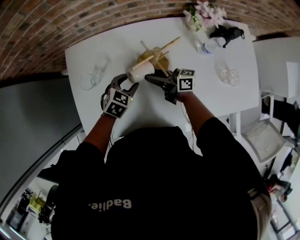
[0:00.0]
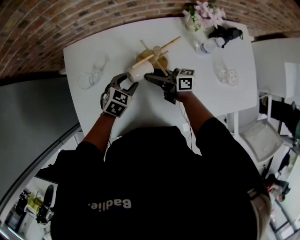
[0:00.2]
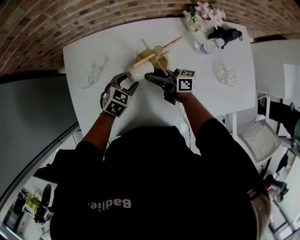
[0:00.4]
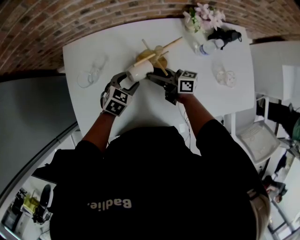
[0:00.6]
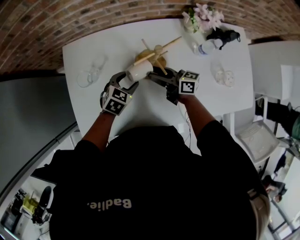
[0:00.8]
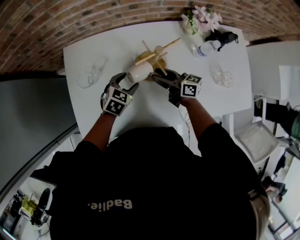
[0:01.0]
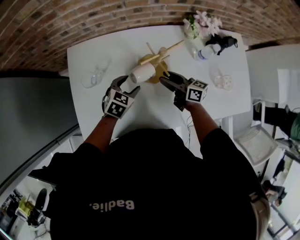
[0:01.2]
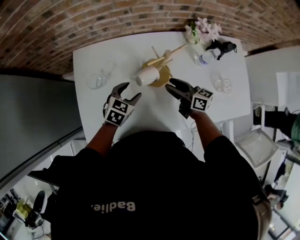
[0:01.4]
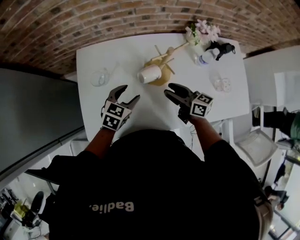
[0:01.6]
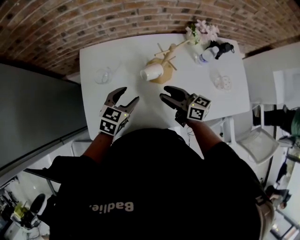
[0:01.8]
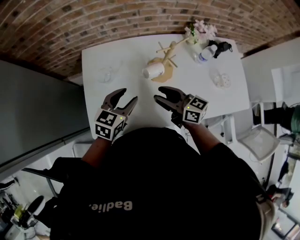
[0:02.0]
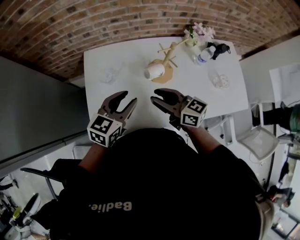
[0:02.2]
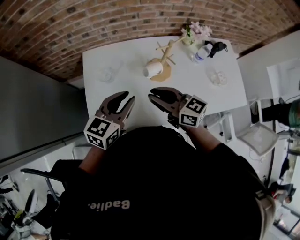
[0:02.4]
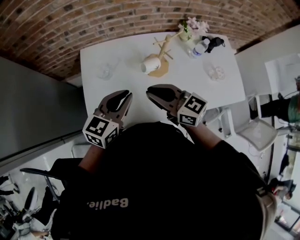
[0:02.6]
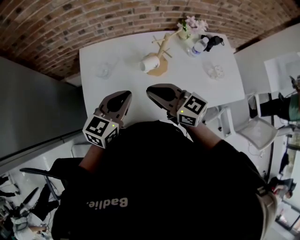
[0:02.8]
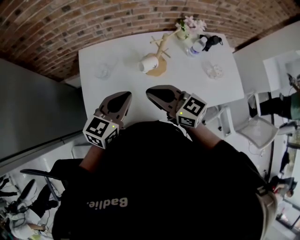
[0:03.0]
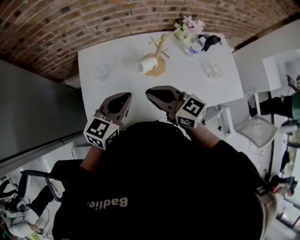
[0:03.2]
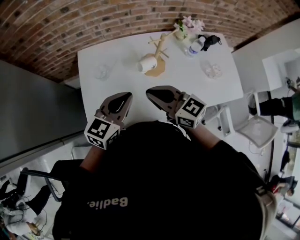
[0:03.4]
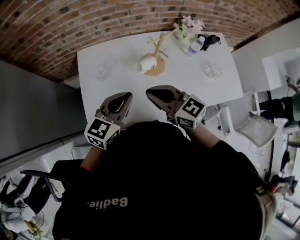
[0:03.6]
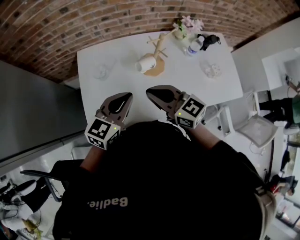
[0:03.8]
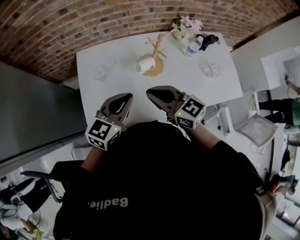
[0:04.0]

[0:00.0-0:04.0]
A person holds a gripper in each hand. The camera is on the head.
0:00.0 to 0:01.4: The left gripper changes place by about 5 cm. Meanwhile the right gripper heads to the right, covering roughly 5 cm, and rotates about 20 degrees.
0:01.4 to 0:02.6: The right gripper heads upward, to the left and backward, covering some 25 cm, turns by about 30 degrees, and closes; the left gripper heads upward and backward, covering roughly 25 cm, rotates approximately 30 degrees, and closes its fingers.
0:02.6 to 0:04.0: The grippers make only small movements.

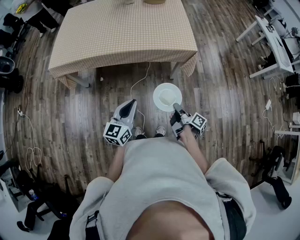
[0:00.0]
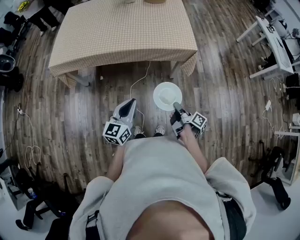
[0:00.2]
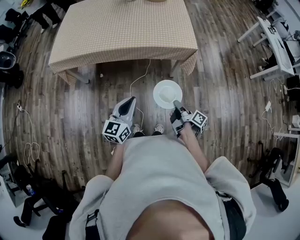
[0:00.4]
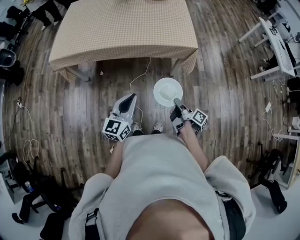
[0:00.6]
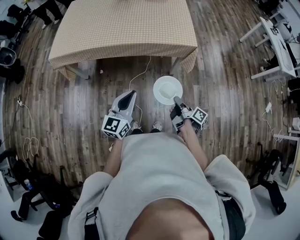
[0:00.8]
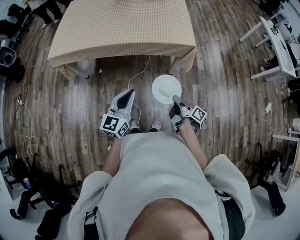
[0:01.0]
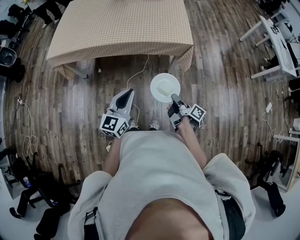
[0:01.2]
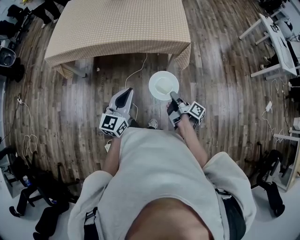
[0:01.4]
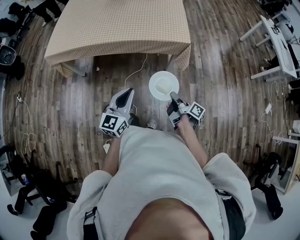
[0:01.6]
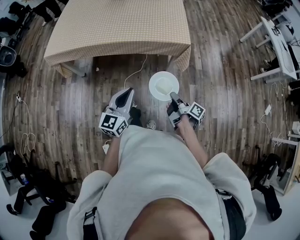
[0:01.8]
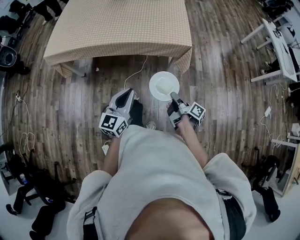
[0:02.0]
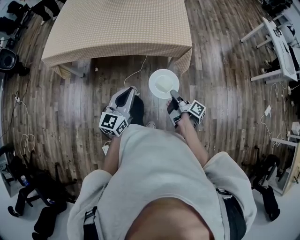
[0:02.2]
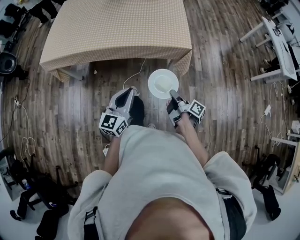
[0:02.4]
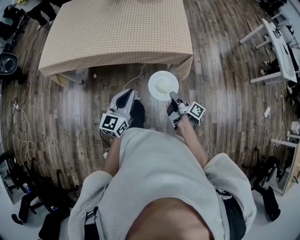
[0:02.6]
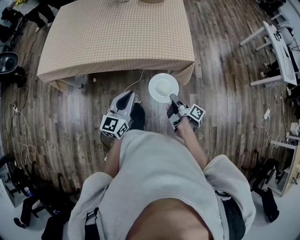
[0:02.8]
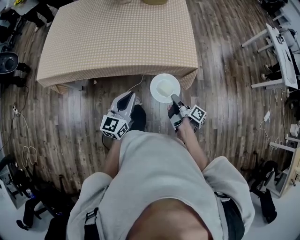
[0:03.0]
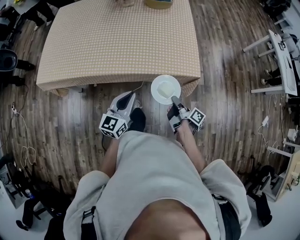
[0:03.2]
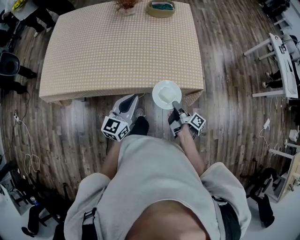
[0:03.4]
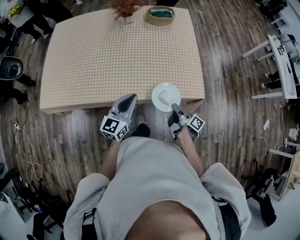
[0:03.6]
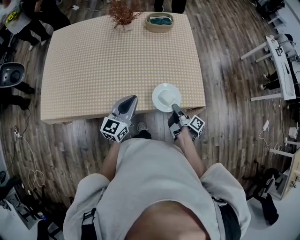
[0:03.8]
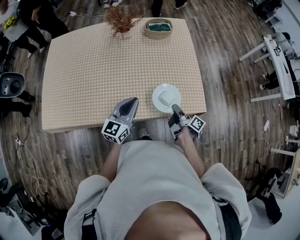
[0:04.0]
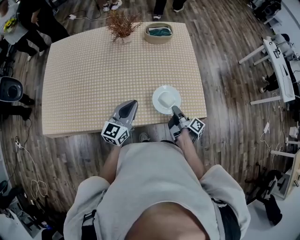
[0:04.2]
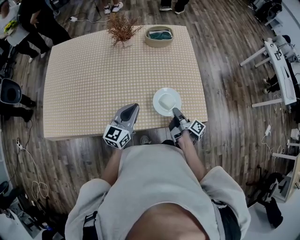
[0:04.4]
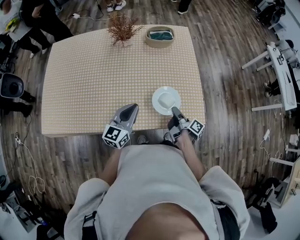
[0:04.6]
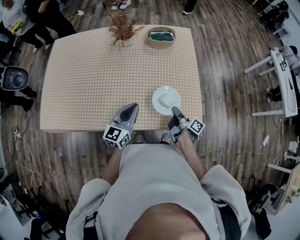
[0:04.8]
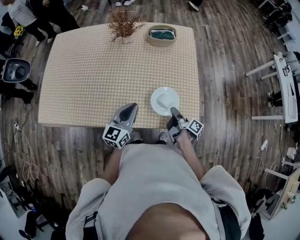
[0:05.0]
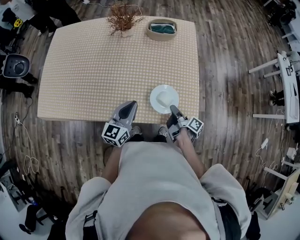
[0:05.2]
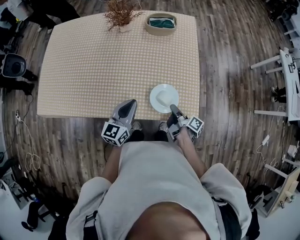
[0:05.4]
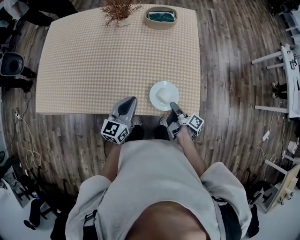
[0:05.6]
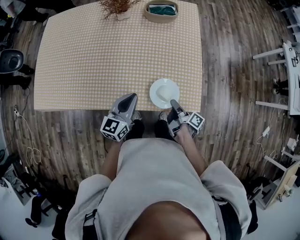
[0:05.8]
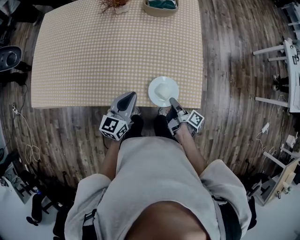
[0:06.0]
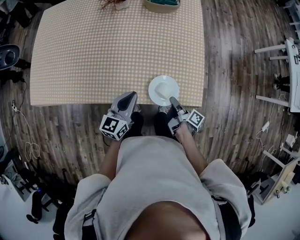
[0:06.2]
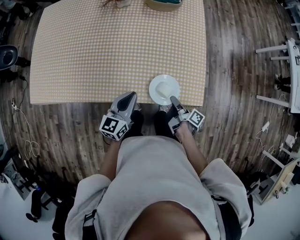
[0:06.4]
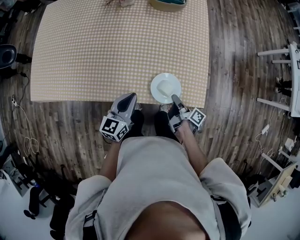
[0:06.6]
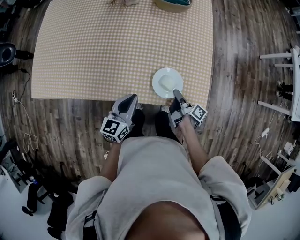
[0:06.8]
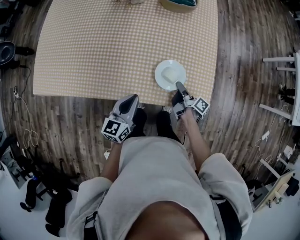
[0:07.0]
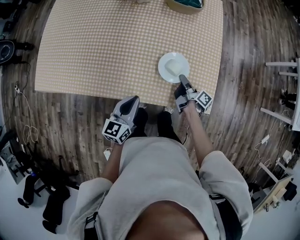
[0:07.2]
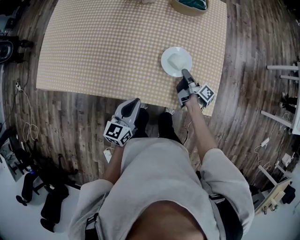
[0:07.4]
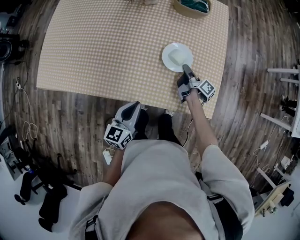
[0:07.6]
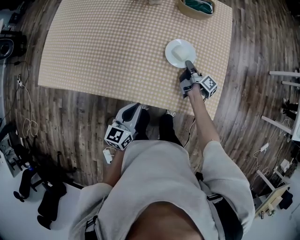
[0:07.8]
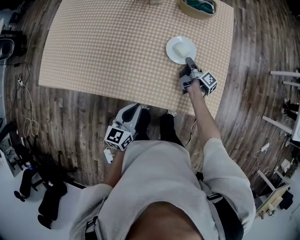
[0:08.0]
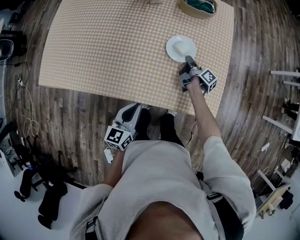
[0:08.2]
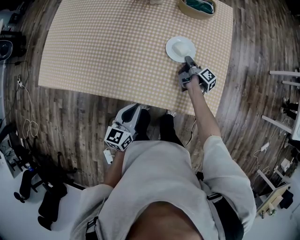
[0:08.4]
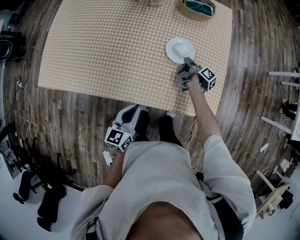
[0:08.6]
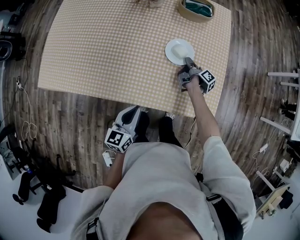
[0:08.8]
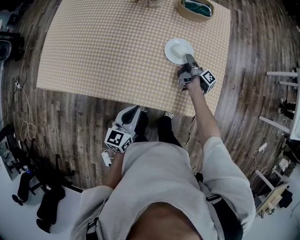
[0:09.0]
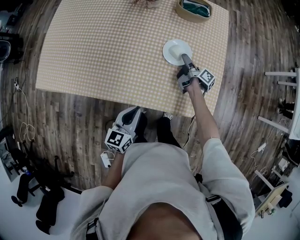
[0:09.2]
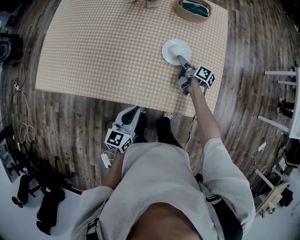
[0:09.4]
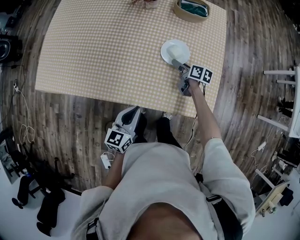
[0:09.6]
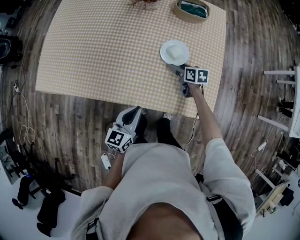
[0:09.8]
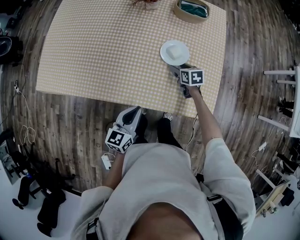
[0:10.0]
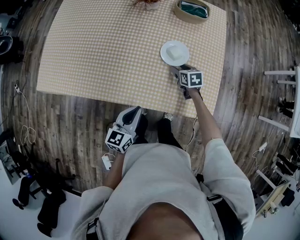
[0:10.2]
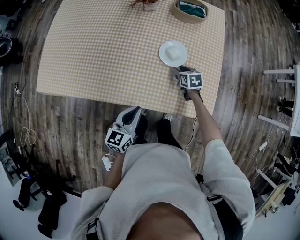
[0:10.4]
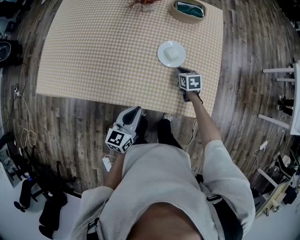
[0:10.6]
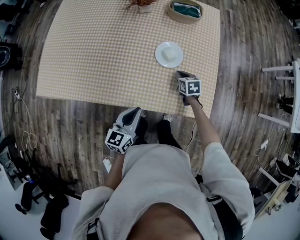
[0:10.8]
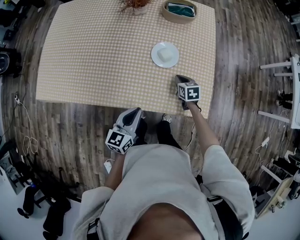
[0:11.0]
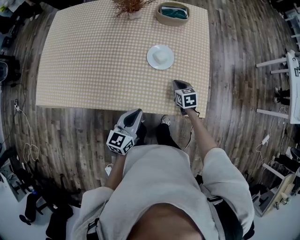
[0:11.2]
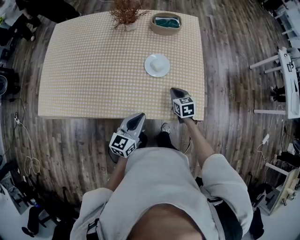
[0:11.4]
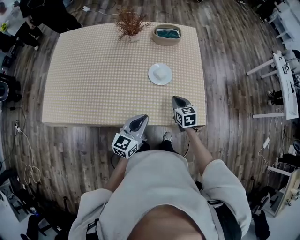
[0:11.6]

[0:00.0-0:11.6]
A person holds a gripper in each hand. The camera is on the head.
0:00.0 to 0:01.4: The left gripper ends up roughly 10 cm from where it was.
0:01.4 to 0:02.8: The left gripper shifts by some 15 cm.
0:02.8 to 0:04.4: The left gripper ends up approximately 35 cm from where it was.
0:04.4 to 0:05.8: The left gripper moves approximately 10 cm.
0:05.8 to 0:07.2: The left gripper shifts by approximately 5 cm.
0:10.2 to 0:11.6: The left gripper shifts some 5 cm upward.

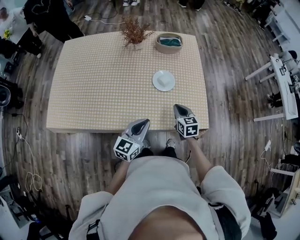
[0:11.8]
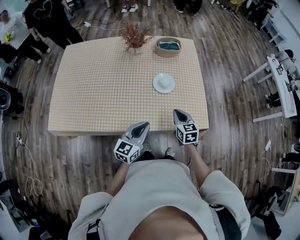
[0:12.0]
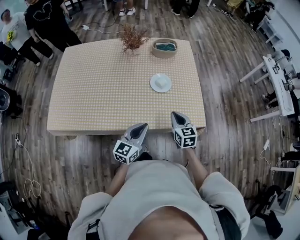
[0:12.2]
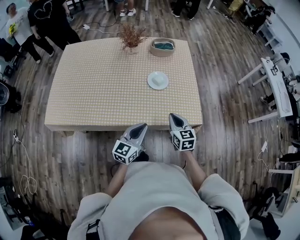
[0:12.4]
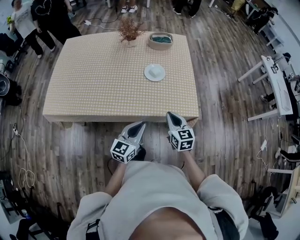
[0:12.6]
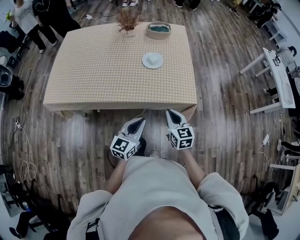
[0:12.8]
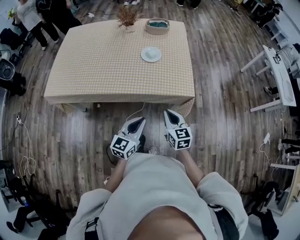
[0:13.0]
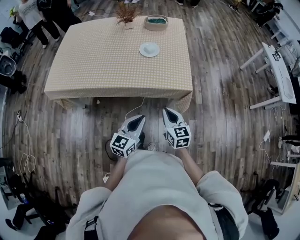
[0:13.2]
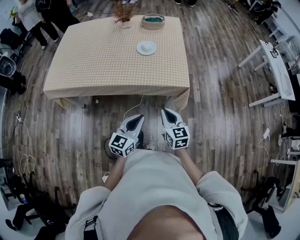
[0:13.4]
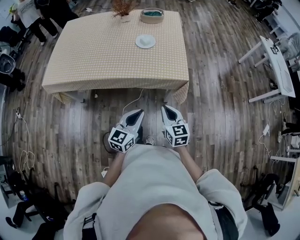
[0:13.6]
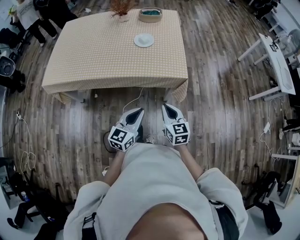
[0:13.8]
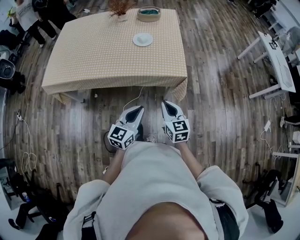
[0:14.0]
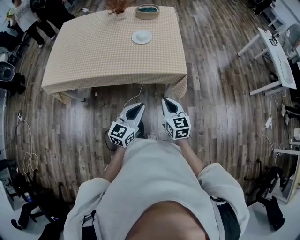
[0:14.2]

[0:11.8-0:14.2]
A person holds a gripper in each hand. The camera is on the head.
0:11.8 to 0:13.0: The left gripper moves some 25 cm.
0:13.0 to 0:14.2: The left gripper ends up roughly 10 cm from where it was.

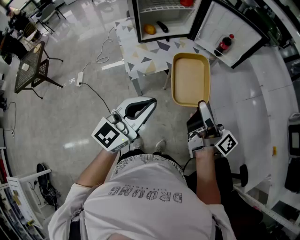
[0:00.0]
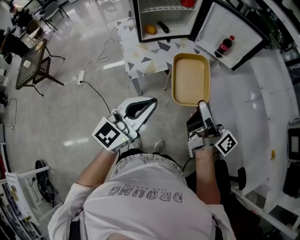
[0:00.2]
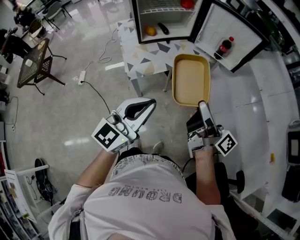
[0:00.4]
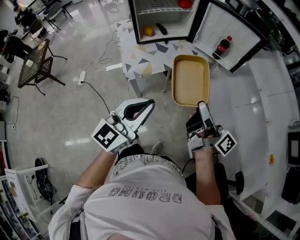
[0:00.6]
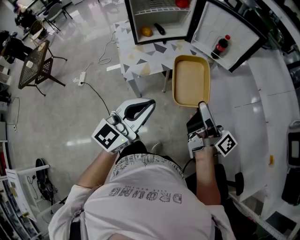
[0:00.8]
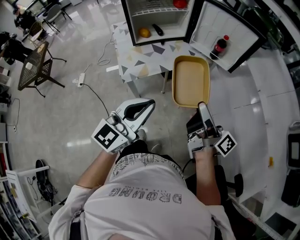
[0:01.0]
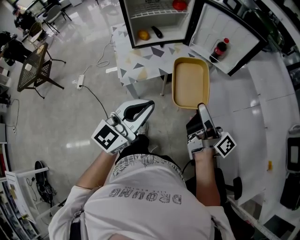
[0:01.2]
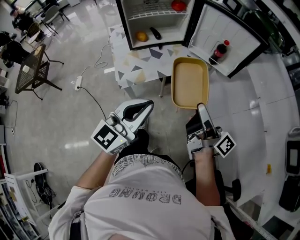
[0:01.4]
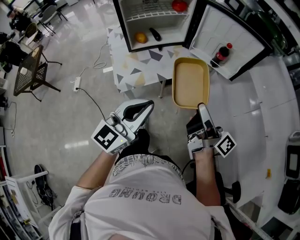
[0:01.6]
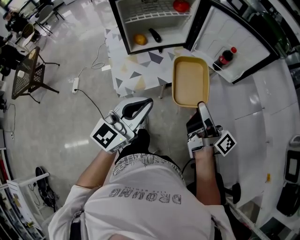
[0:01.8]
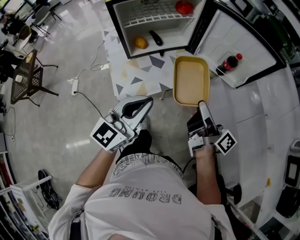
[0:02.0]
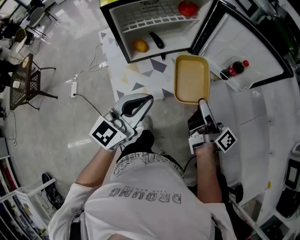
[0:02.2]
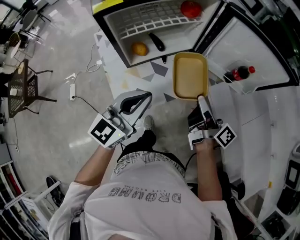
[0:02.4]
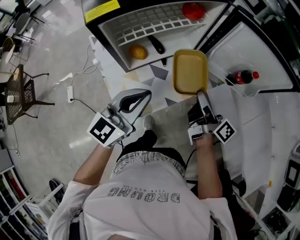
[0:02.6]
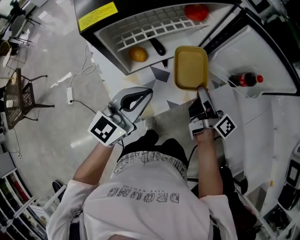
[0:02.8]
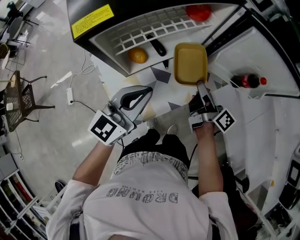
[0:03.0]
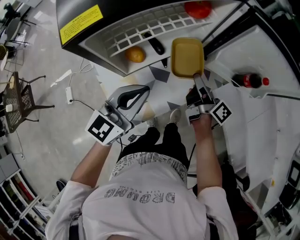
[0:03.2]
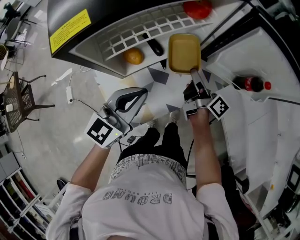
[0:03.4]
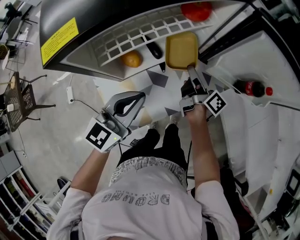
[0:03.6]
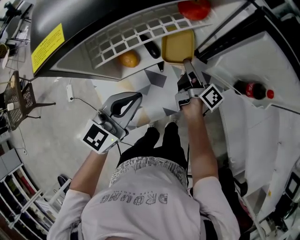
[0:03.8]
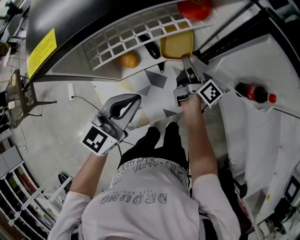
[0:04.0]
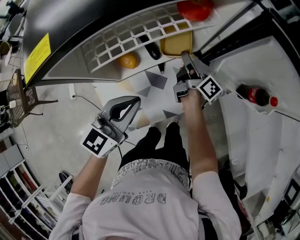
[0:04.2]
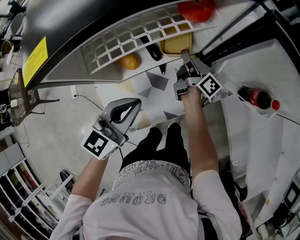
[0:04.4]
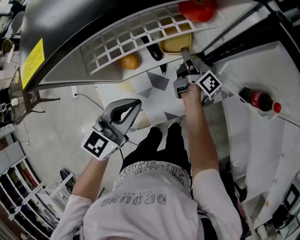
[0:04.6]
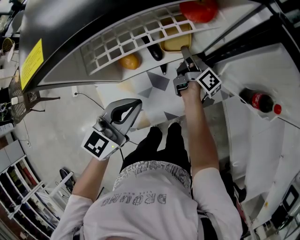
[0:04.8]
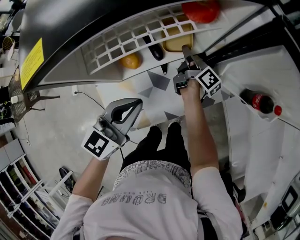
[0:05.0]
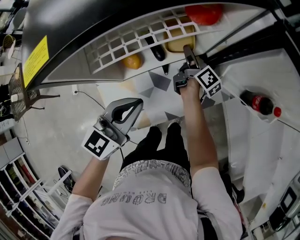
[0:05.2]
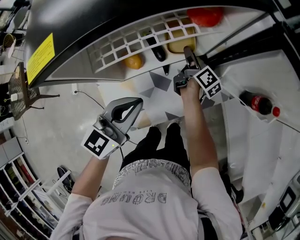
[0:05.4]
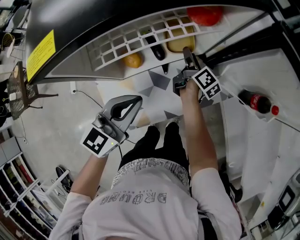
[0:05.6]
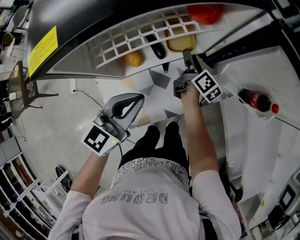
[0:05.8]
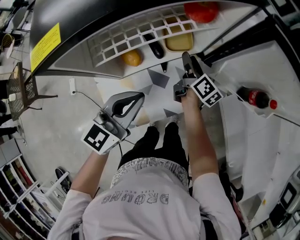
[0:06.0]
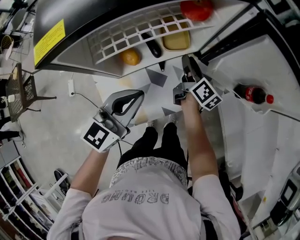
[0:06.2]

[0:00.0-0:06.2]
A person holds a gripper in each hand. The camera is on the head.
0:00.0 to 0:01.6: The grippers both shift forward and to the right by some 10 cm.
0:01.6 to 0:03.2: The right gripper shifts roughly 40 cm forward, downward and to the left, and rotates approximately 20 degrees. The left gripper travels forward and to the left by roughly 35 cm.
0:03.2 to 0:04.6: The left gripper shifts by roughly 5 cm. The right gripper is displaced forward and downward by about 15 cm.
0:04.6 to 0:06.2: The right gripper shifts by roughly 5 cm, and turns by some 20 degrees.
